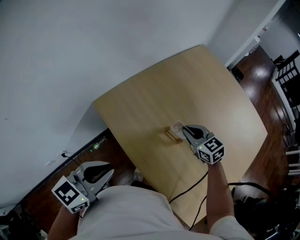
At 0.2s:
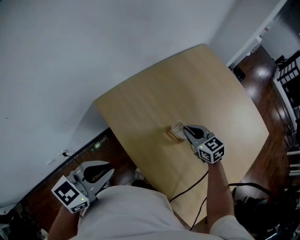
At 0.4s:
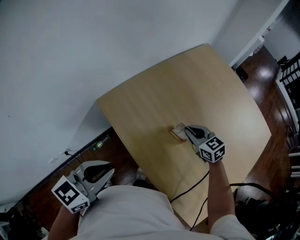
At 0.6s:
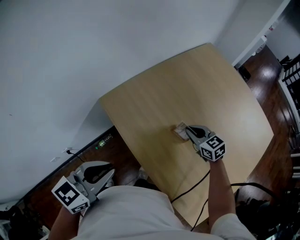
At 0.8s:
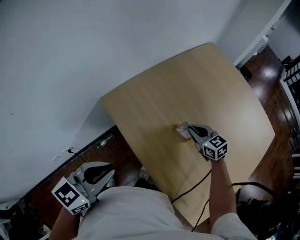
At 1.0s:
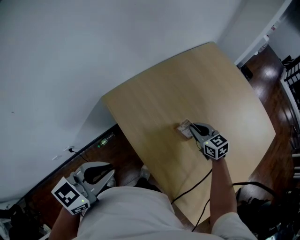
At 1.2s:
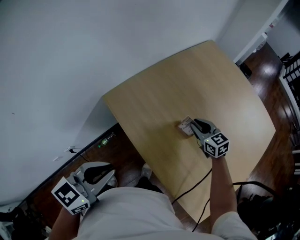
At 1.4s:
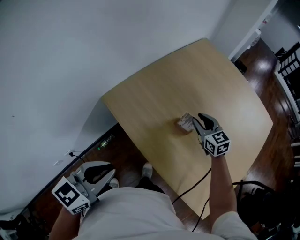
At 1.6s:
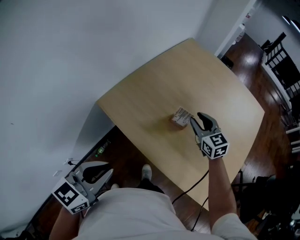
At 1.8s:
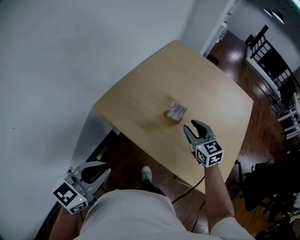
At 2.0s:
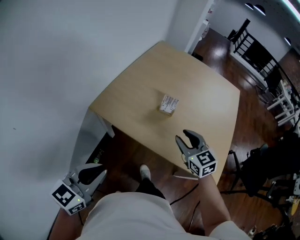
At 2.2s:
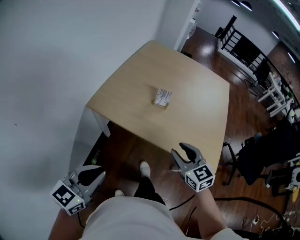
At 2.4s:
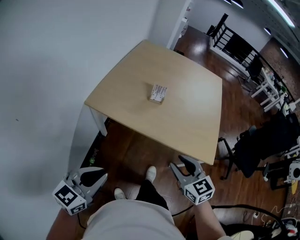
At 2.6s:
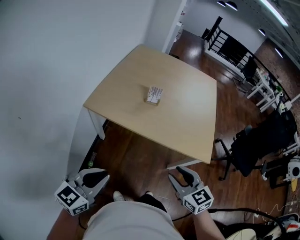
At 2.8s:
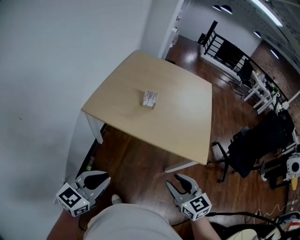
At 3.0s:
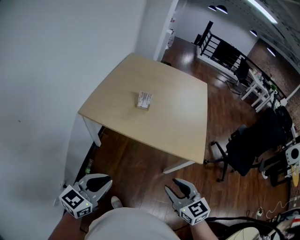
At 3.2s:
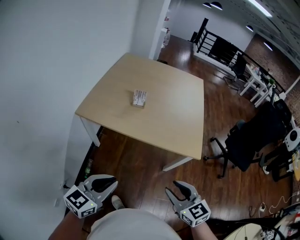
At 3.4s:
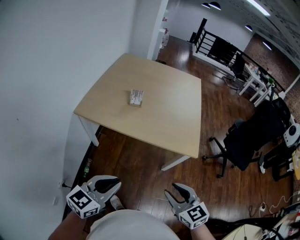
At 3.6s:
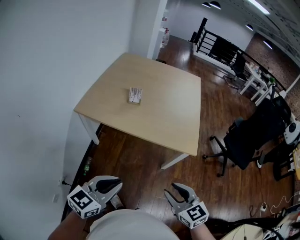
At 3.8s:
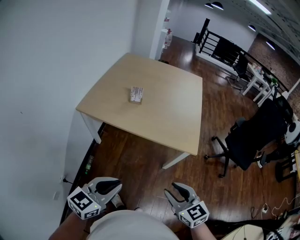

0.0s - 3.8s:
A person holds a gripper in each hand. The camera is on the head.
0.0s - 1.2s: The grippers move only a little.
1.2s - 2.6s: The left gripper shifts by roughly 25 cm, and changes its angle by approximately 30 degrees. The right gripper moves approximately 60 cm, swivels about 40 degrees, and opens.
2.6s - 3.8s: The right gripper moves backward and to the right, some 15 cm; the left gripper is displaced to the right and backward by roughly 20 cm.

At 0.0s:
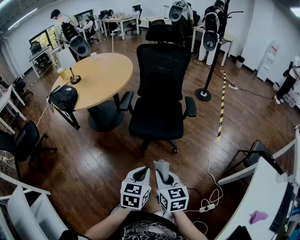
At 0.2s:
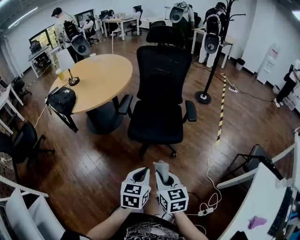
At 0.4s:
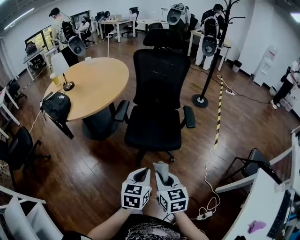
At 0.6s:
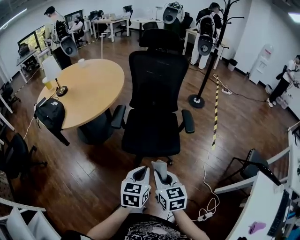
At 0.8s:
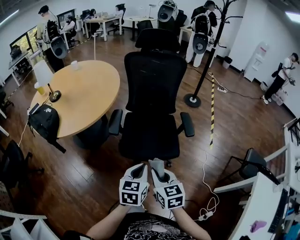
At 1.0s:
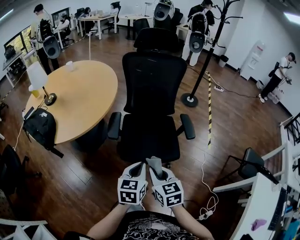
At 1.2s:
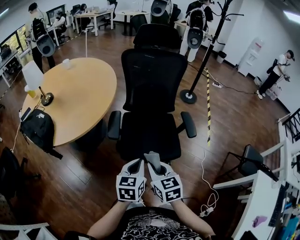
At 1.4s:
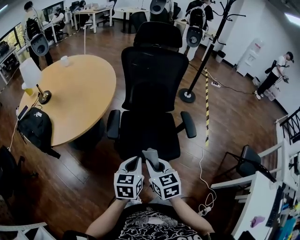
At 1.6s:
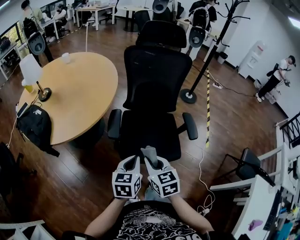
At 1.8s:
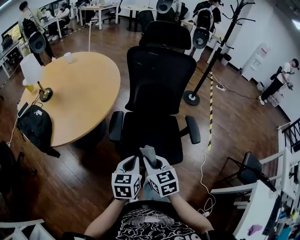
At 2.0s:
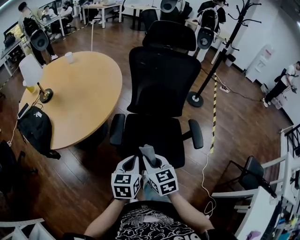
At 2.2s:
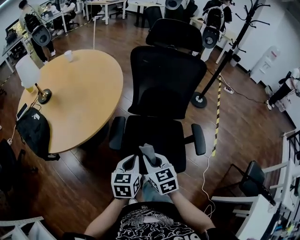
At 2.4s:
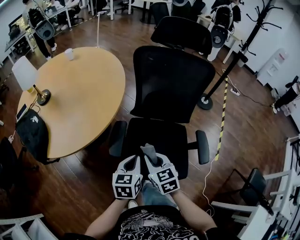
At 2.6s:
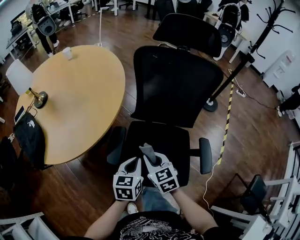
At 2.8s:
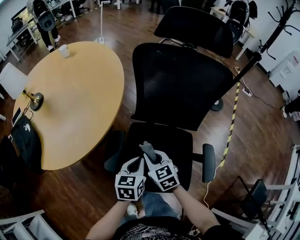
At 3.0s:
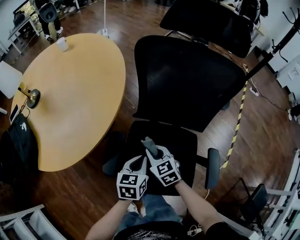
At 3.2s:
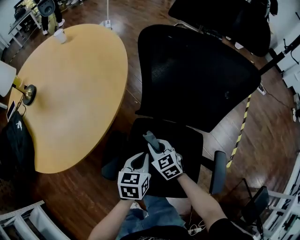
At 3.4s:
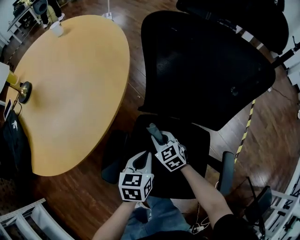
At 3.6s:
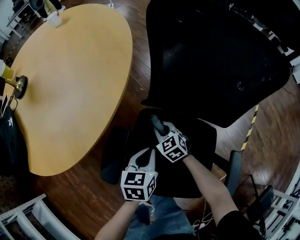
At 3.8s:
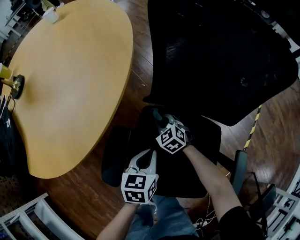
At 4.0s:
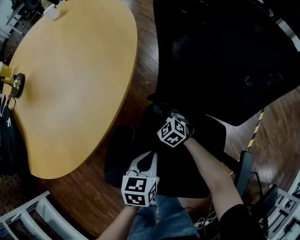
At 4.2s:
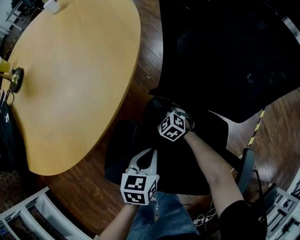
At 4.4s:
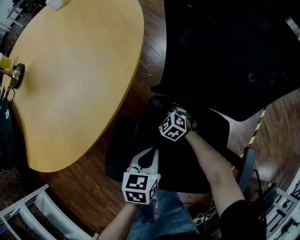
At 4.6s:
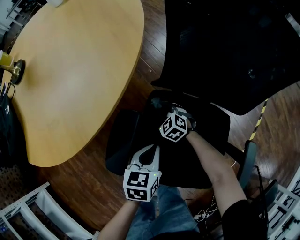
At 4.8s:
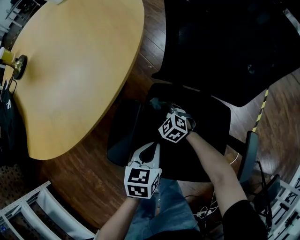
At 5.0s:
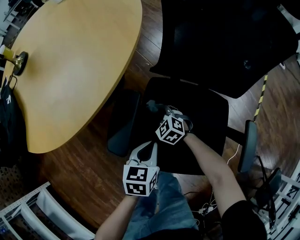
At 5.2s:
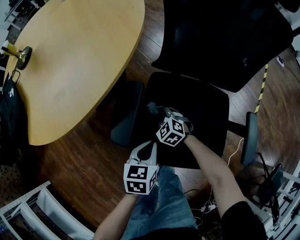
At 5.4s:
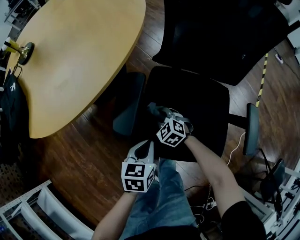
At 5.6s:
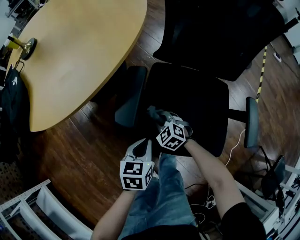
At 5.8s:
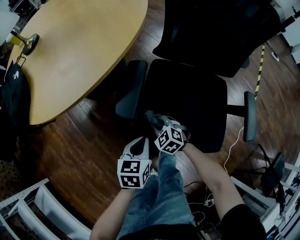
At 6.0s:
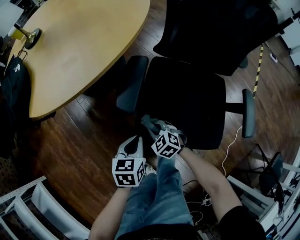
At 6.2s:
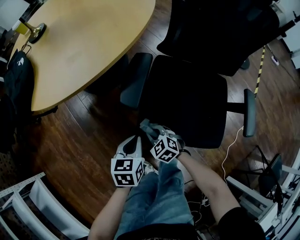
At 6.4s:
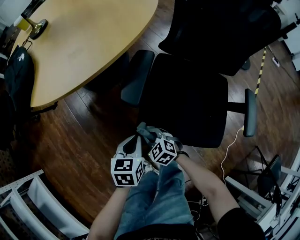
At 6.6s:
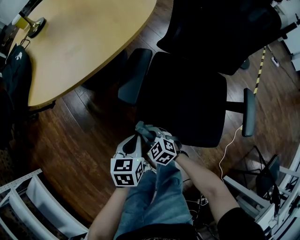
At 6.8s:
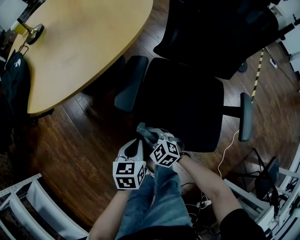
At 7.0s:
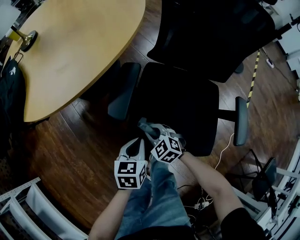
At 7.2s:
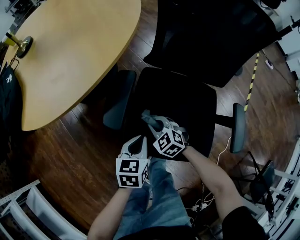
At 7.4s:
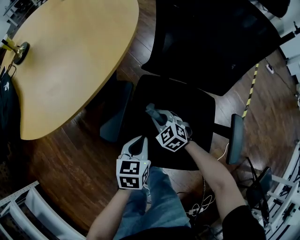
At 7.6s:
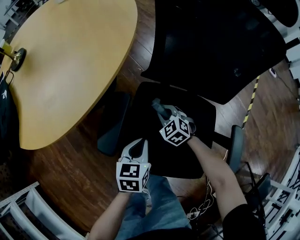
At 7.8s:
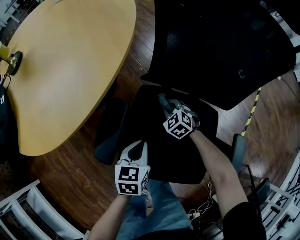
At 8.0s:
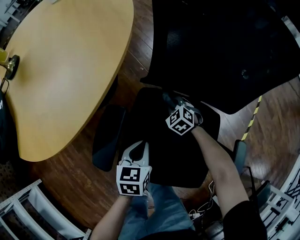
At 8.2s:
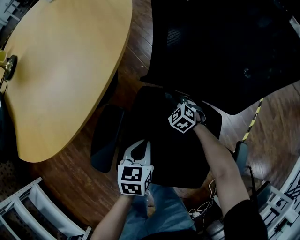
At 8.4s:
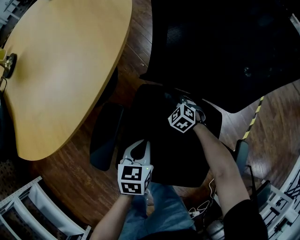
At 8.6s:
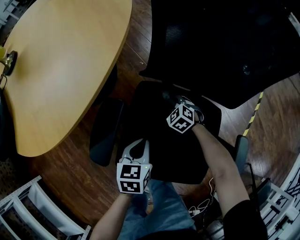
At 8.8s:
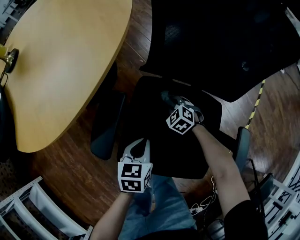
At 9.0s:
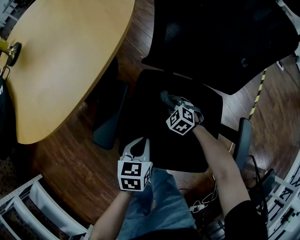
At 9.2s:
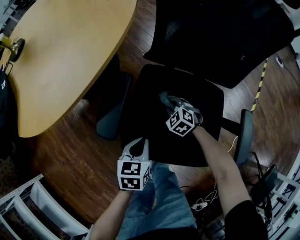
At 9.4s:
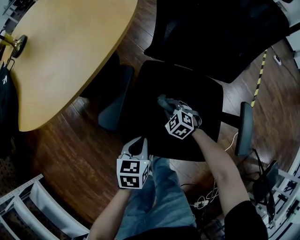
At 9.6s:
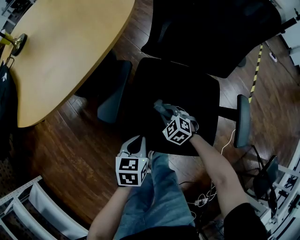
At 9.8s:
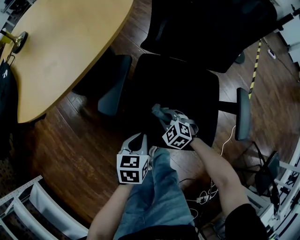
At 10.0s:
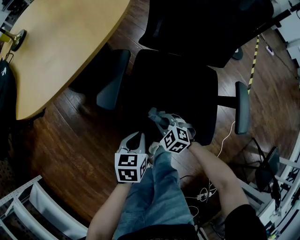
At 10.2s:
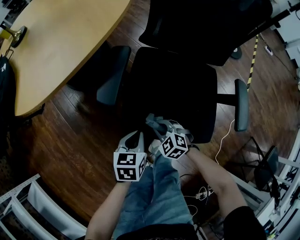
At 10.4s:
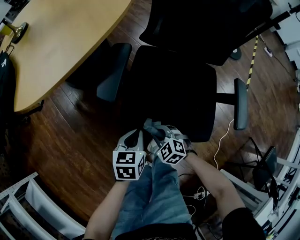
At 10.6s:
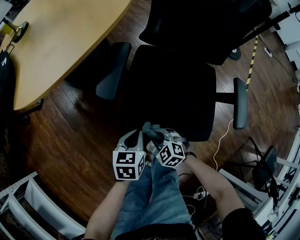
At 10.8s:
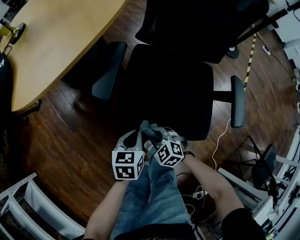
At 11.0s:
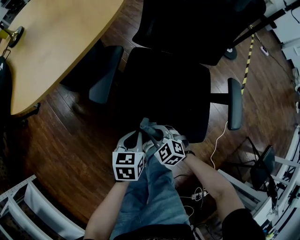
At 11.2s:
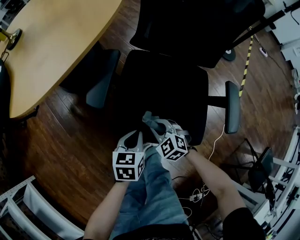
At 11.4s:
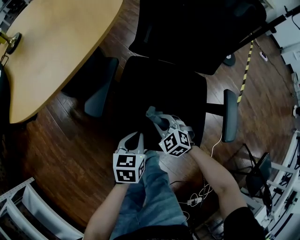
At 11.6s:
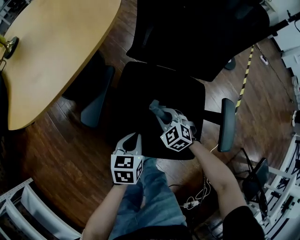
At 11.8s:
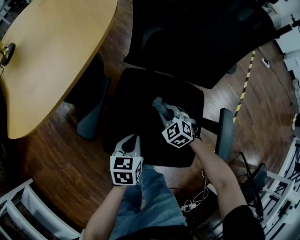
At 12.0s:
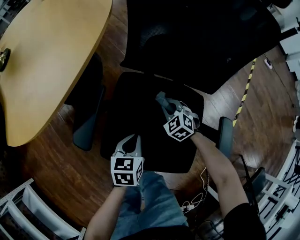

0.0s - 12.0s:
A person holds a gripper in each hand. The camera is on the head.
0.0s - 1.6s: The grippers both shift forward by about 35 cm.
1.6s - 3.0s: Both grippers travel together forward and downward, roughly 35 cm. The right gripper swivels some 30 degrees.
3.0s - 4.4s: The left gripper travels downward by approximately 15 cm. Meanwhile the right gripper travels downward and forward by about 30 cm, and changes its angle by about 30 degrees.
4.4s - 6.0s: Both grippers move backward and to the left, some 30 cm.
6.0s - 7.6s: The left gripper heads to the right and forward, covering approximately 20 cm; the right gripper moves forward and to the right, some 25 cm.
7.6s - 9.0s: The right gripper heads downward, covering about 5 cm, and reaches roughly 10 cm forward, then returns.
9.0s - 10.4s: The right gripper is displaced backward and to the left by roughly 30 cm; the left gripper moves backward and to the left, some 15 cm.
10.4s - 12.0s: The left gripper shifts roughly 20 cm forward and to the right. The right gripper goes some 35 cm forward and to the right.

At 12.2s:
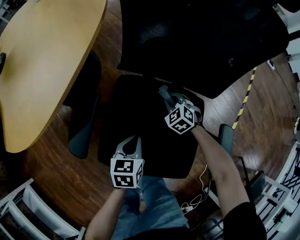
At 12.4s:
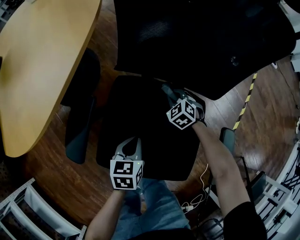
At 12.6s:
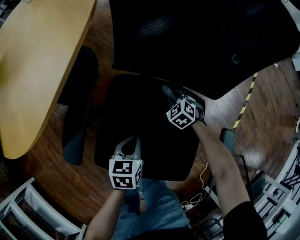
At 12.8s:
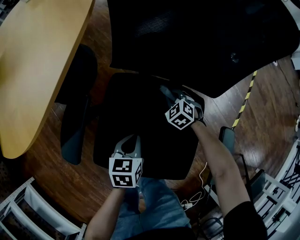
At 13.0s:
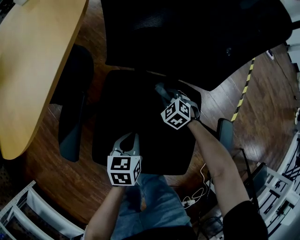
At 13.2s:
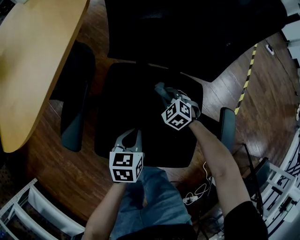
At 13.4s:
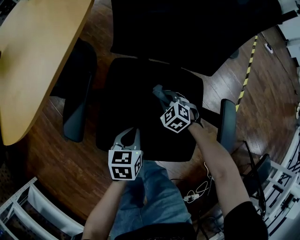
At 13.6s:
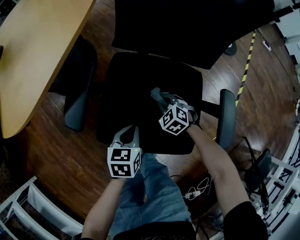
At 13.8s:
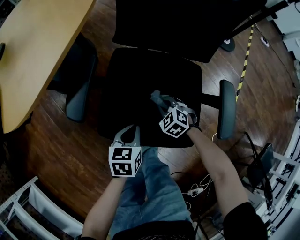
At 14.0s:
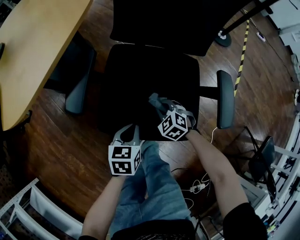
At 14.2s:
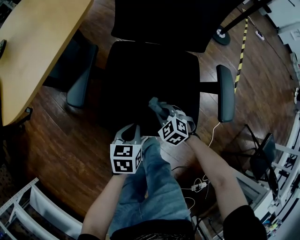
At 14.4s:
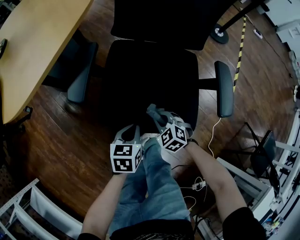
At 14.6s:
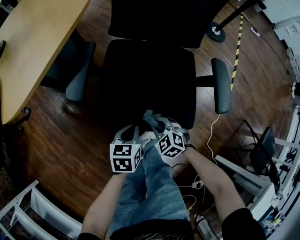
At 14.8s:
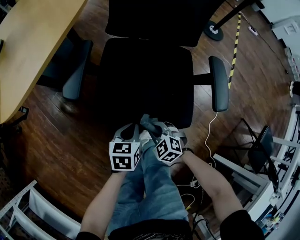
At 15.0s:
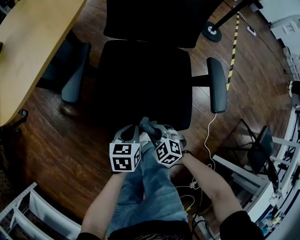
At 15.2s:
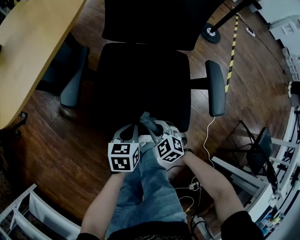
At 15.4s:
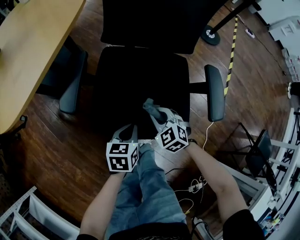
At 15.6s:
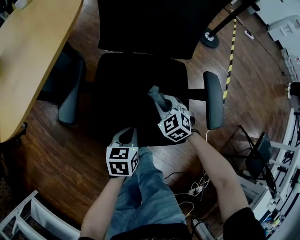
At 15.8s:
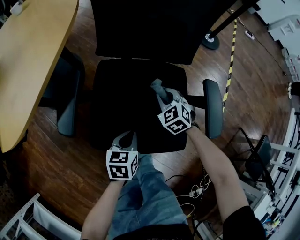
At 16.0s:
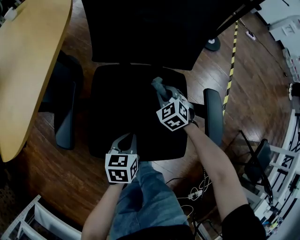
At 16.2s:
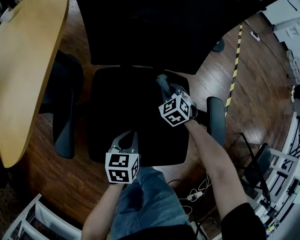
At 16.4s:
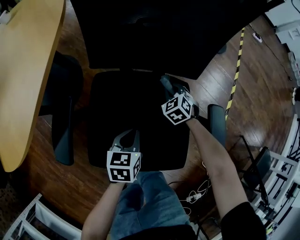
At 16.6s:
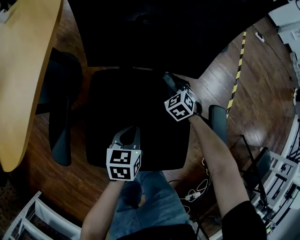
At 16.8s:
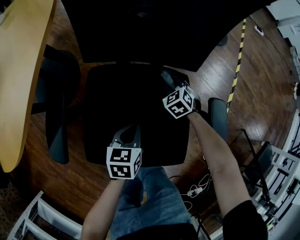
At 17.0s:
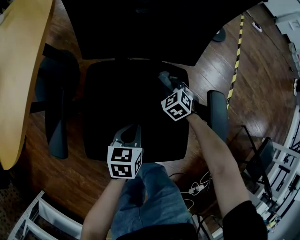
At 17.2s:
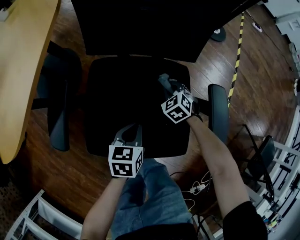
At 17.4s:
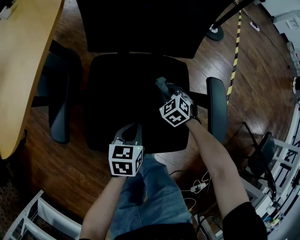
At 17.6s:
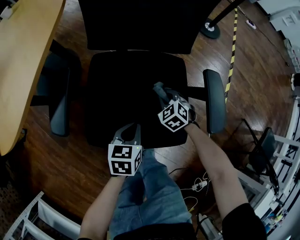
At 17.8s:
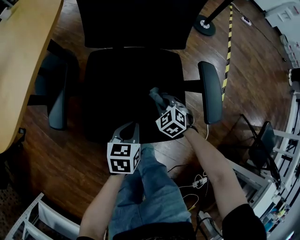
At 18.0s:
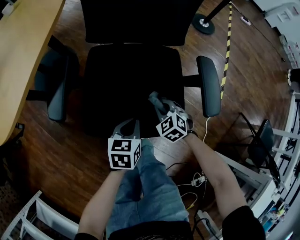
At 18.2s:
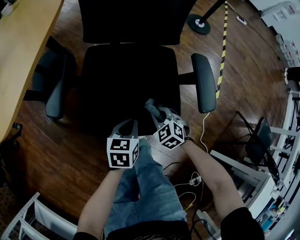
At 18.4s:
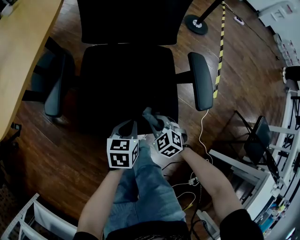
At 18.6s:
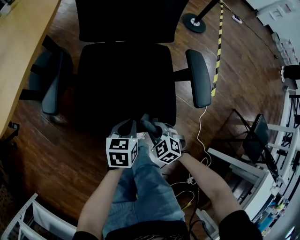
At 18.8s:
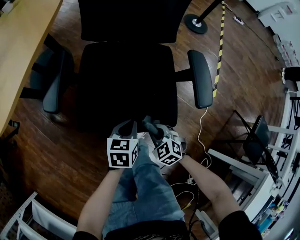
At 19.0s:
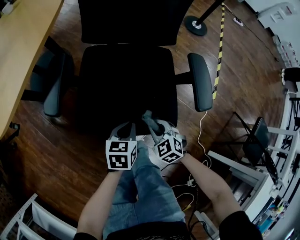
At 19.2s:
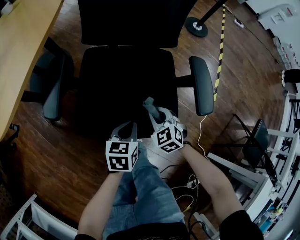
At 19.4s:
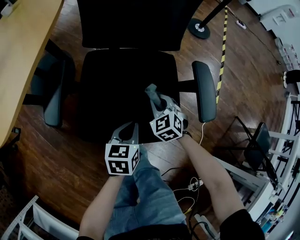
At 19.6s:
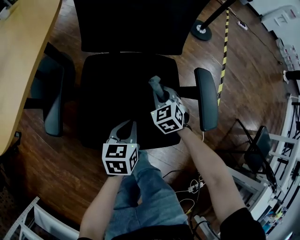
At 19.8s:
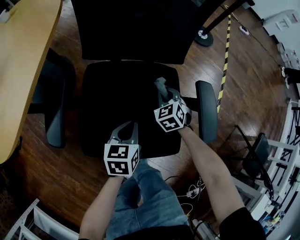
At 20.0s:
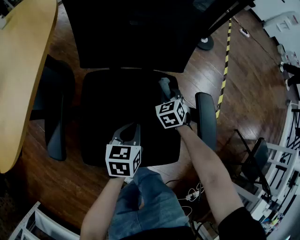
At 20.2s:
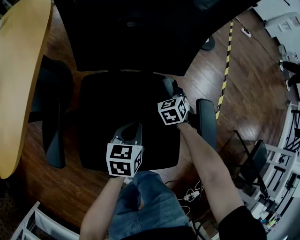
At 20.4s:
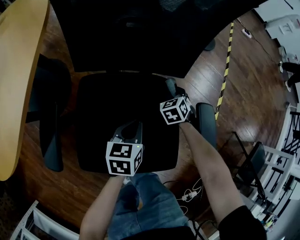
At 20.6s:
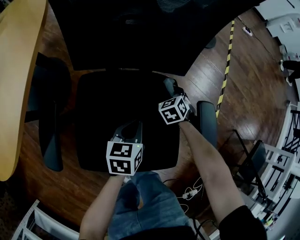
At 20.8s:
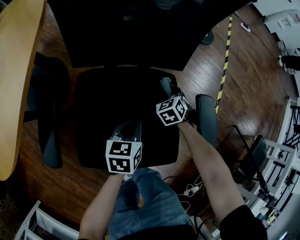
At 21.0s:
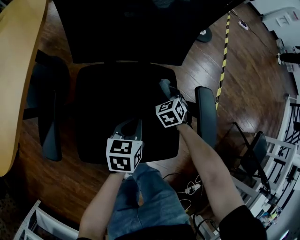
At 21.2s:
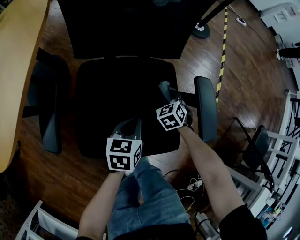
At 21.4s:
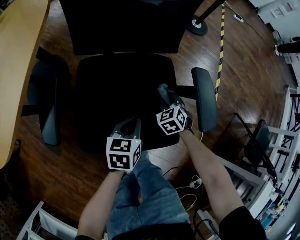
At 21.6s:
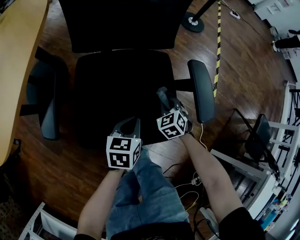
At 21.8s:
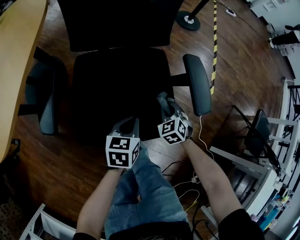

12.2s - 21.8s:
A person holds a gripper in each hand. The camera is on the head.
12.2s - 13.8s: The right gripper travels backward by roughly 20 cm. The left gripper travels backward by some 10 cm.
13.8s - 15.4s: The right gripper shifts approximately 10 cm backward and upward.
15.4s - 17.0s: The right gripper goes roughly 25 cm forward; the left gripper heads forward, covering some 15 cm.
17.0s - 18.6s: The left gripper is displaced backward by roughly 15 cm, while the right gripper shifts some 35 cm backward.
18.6s - 20.2s: The right gripper shifts roughly 40 cm forward, and rotates roughly 30 degrees. Meanwhile the left gripper moves forward, roughly 20 cm.
20.2s - 21.8s: The left gripper moves backward, some 15 cm, while the right gripper shifts approximately 25 cm backward.
